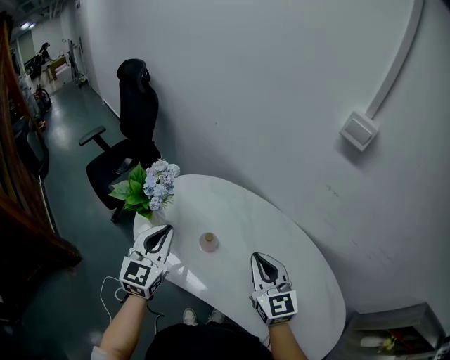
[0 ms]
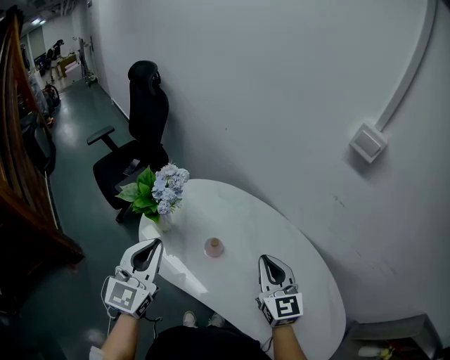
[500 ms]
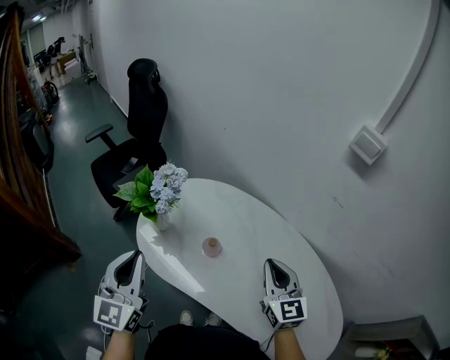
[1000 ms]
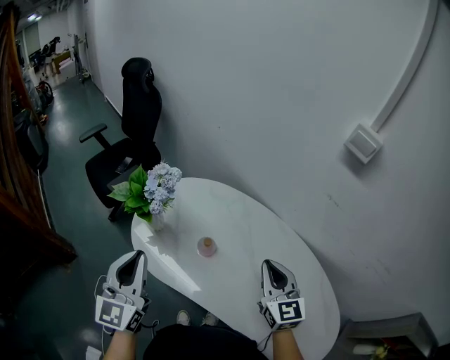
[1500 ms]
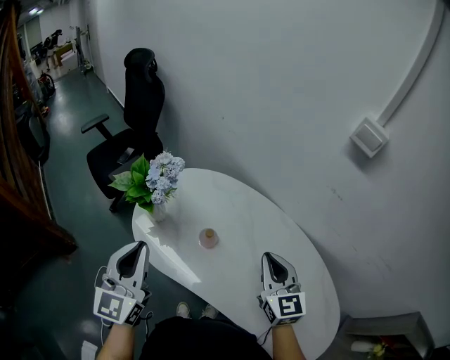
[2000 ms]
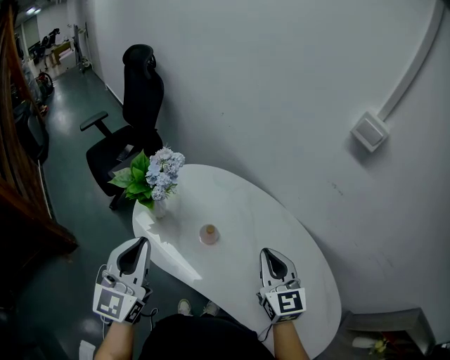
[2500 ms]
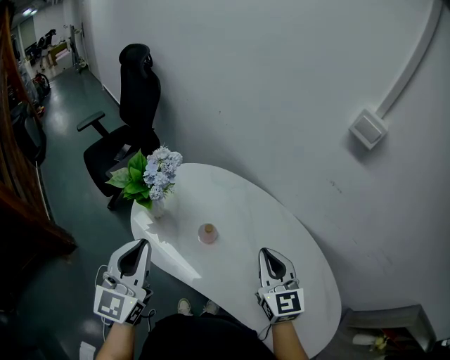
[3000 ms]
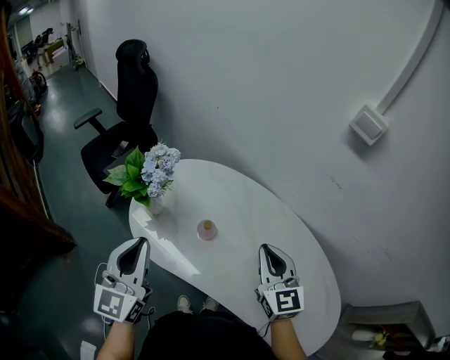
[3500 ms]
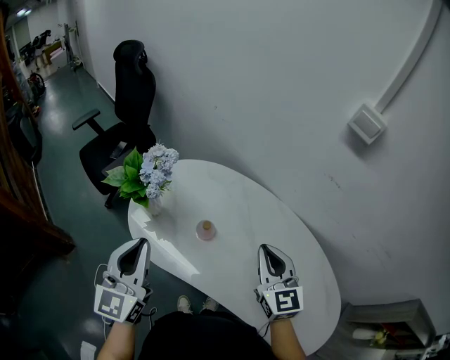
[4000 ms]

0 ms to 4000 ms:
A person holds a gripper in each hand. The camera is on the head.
0 ms to 2000 ms: The left gripper travels backward, upward and to the left by approximately 10 cm.
2000 ms to 4000 ms: The grippers stay close to where they were, moving slightly.

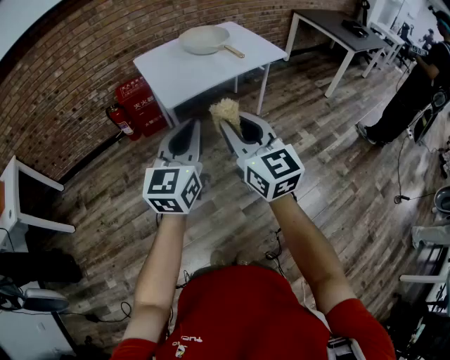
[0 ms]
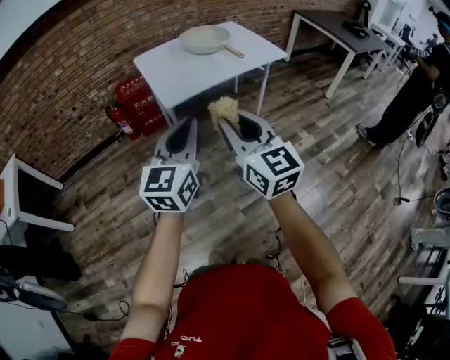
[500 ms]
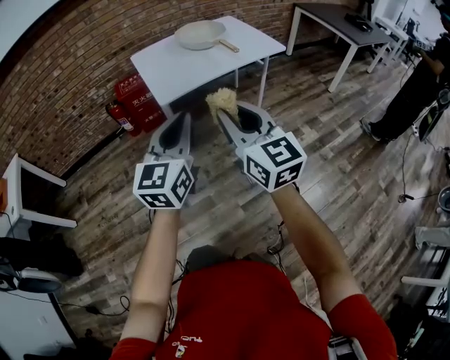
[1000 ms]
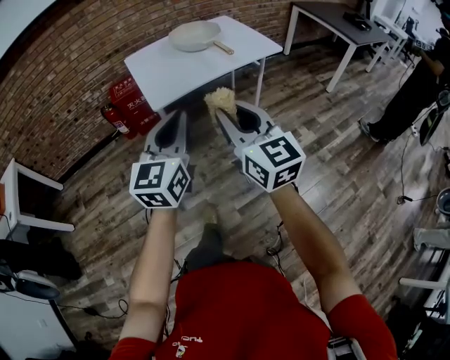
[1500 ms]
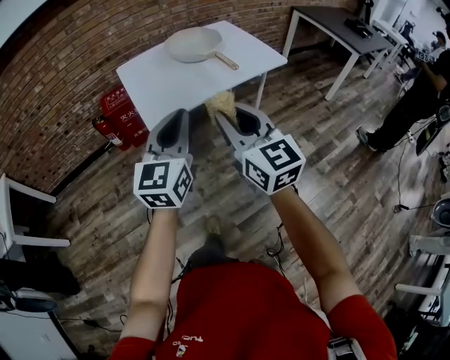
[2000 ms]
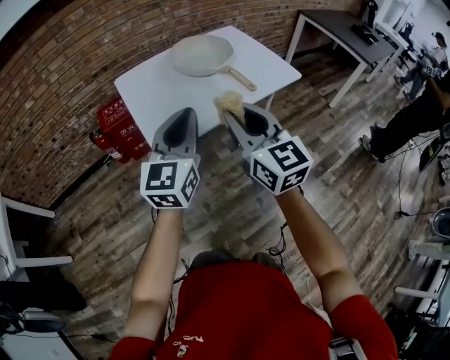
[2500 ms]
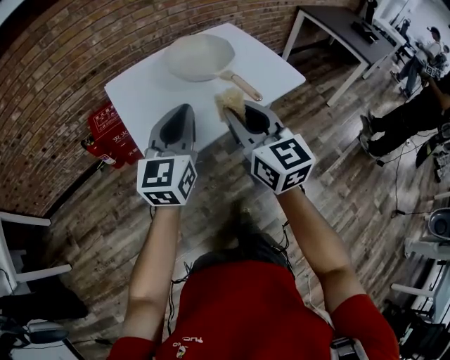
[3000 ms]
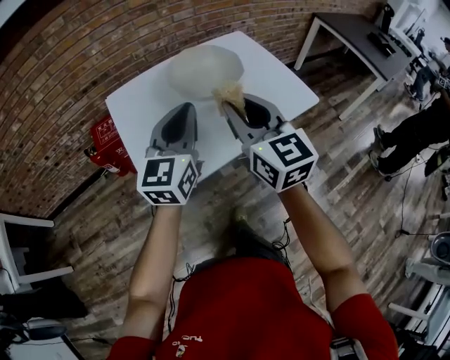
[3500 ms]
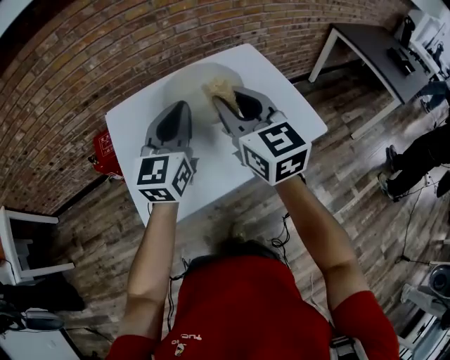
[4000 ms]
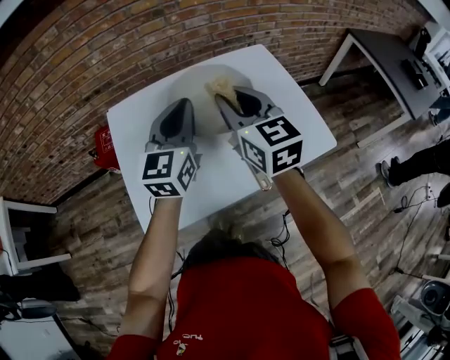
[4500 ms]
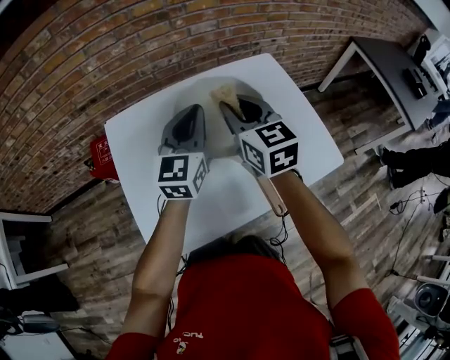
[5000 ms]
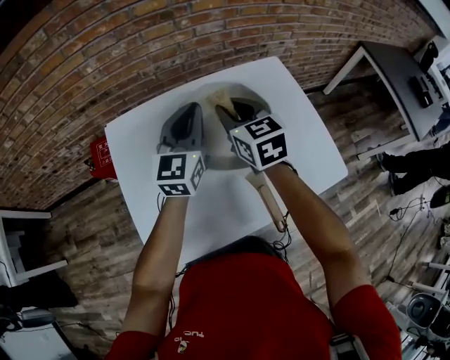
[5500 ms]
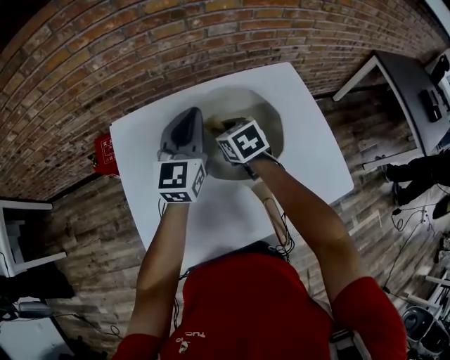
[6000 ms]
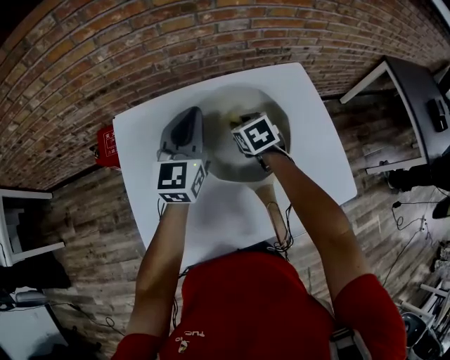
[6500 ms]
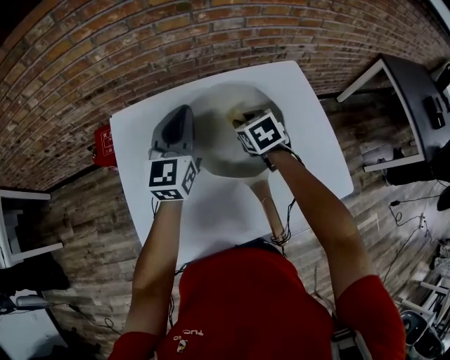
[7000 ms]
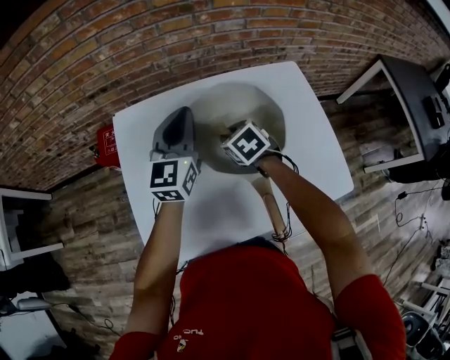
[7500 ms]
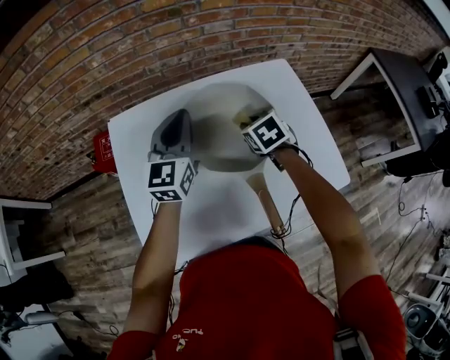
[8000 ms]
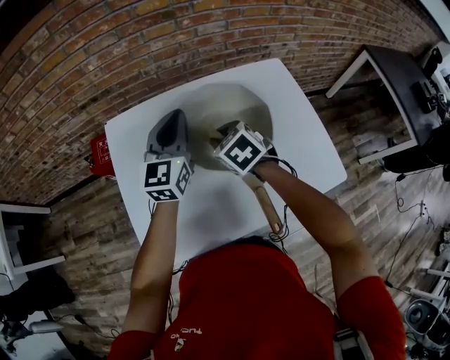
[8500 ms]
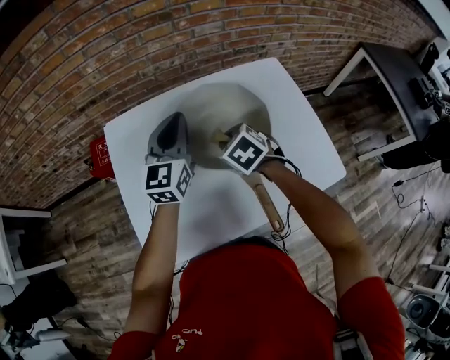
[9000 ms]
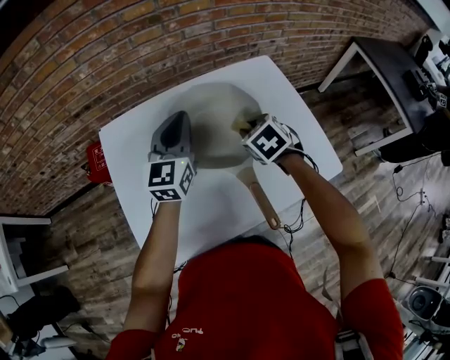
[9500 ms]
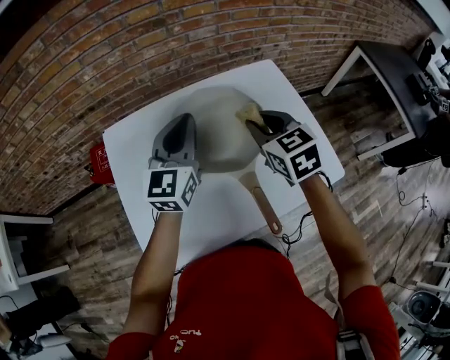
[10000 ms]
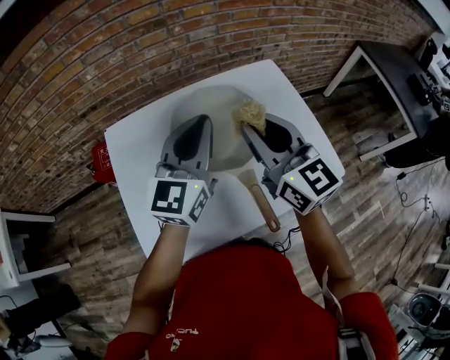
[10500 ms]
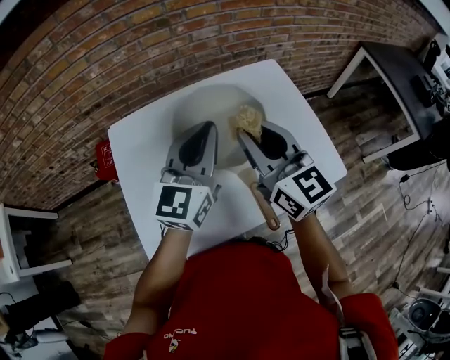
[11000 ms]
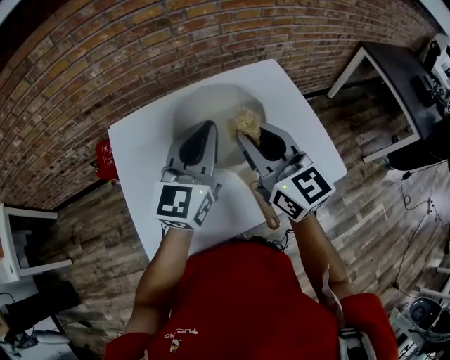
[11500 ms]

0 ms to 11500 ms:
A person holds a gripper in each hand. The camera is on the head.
0 ms to 2000 ms: Both grippers travel together forward, about 15 cm.
2000 ms to 4000 ms: The pair of grippers is taken forward, roughly 50 cm.
4000 ms to 6000 ms: The right gripper is displaced forward and downward by some 35 cm, and tilts its fingers approximately 40 degrees downward, while the left gripper shifts about 20 cm forward.
7500 ms to 9500 ms: The right gripper moves left and right over roughly 10 cm, changing direction 2 times.
9500 ms to 11500 ms: The left gripper is displaced backward, upward and to the right by about 10 cm, while the right gripper goes roughly 20 cm upward and backward, and tilts its fingers about 60 degrees upward.

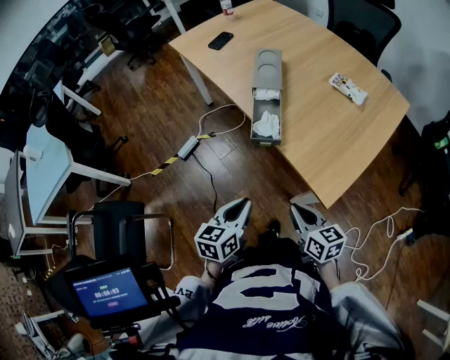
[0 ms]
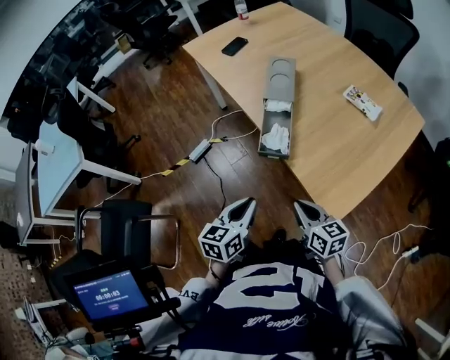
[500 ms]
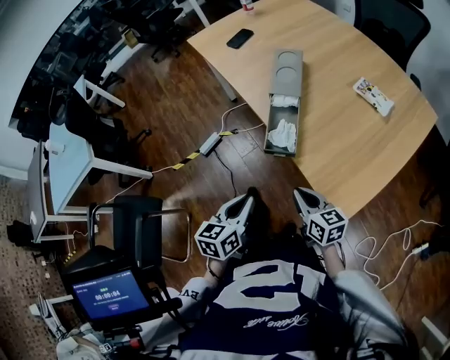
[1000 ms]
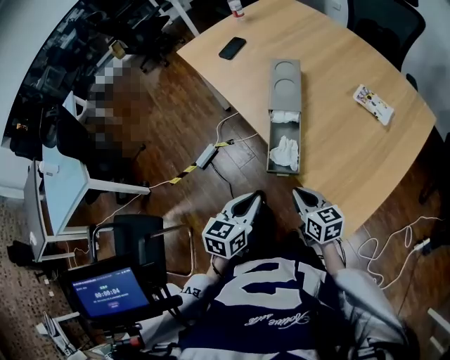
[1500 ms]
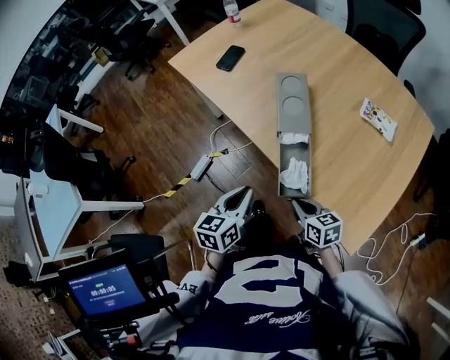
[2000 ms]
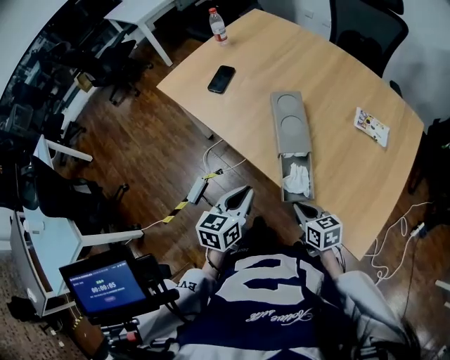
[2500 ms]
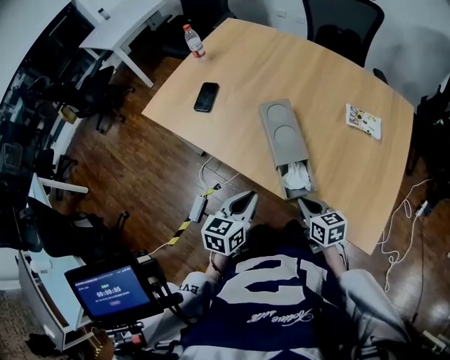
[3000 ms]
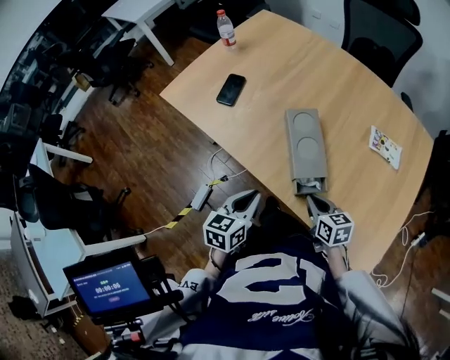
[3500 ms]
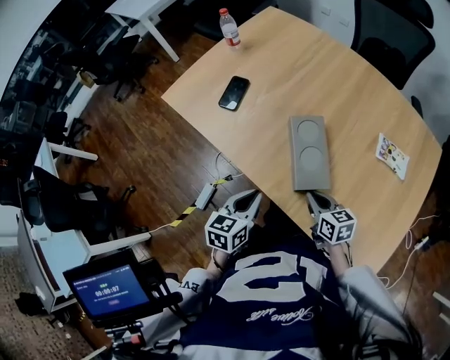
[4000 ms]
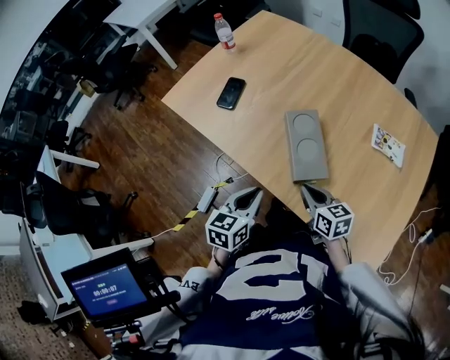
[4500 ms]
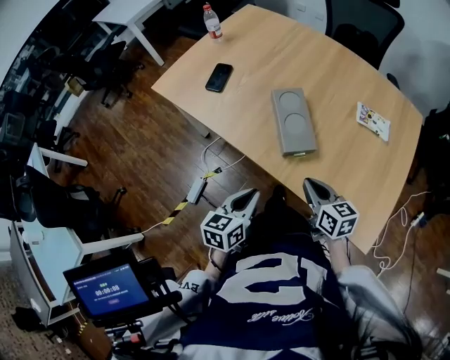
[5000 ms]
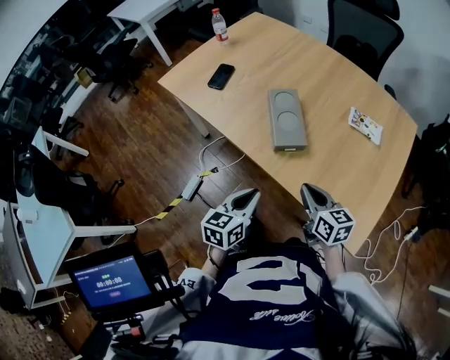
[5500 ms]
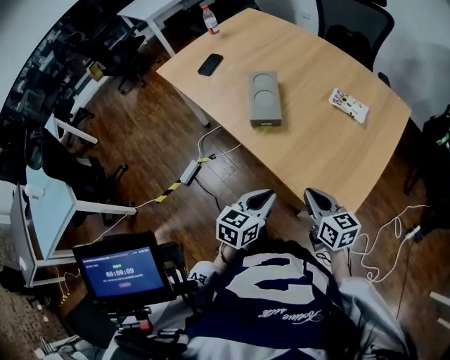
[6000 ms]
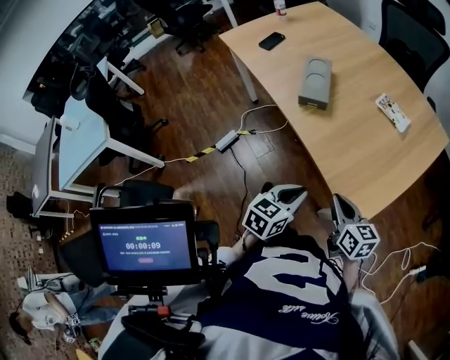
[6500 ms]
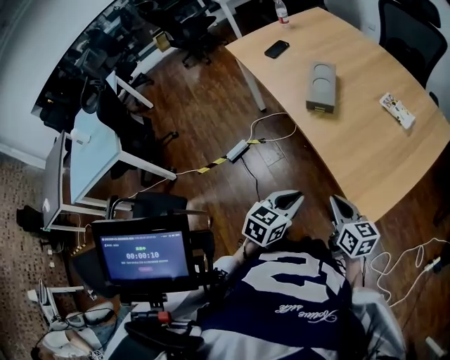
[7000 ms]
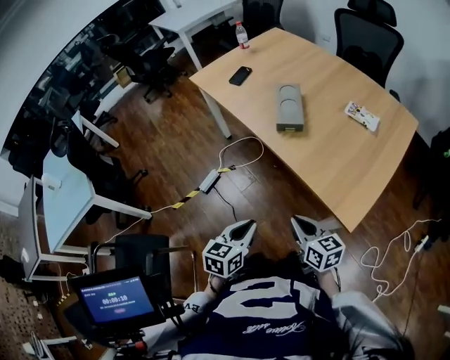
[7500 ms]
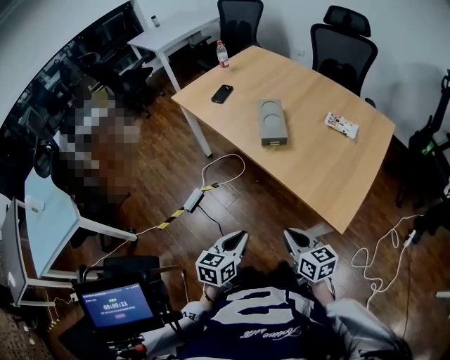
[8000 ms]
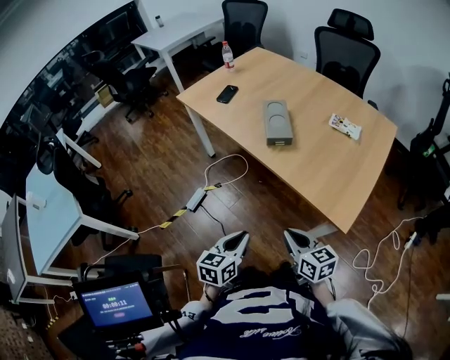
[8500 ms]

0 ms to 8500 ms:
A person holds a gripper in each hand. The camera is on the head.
0 ms to 2000 ms: Both grippers travel together forward, roughly 25 cm.
2000 ms to 4000 ms: Both grippers travel together forward, roughly 20 cm.
4000 ms to 6500 ms: Both grippers move backward and to the right, some 40 cm.
6500 ms to 8500 ms: The grippers both shift to the left by approximately 15 cm.

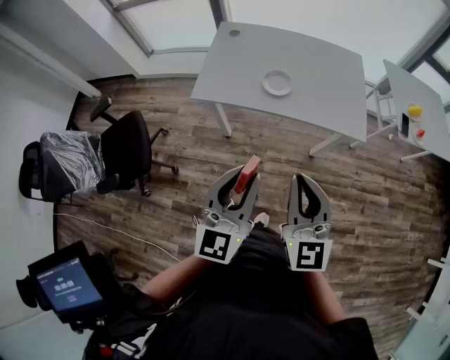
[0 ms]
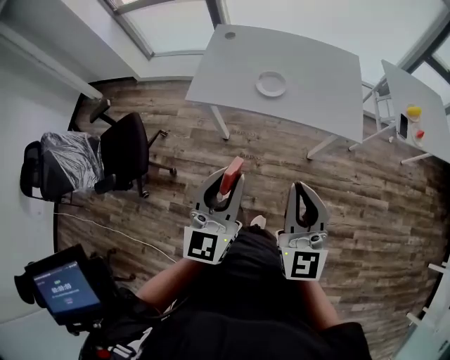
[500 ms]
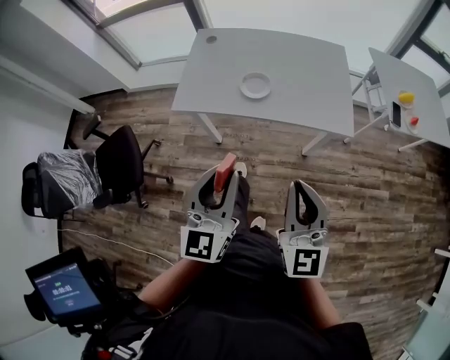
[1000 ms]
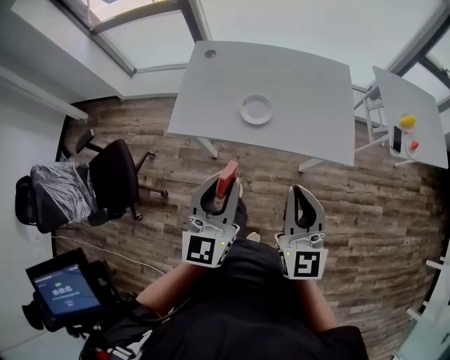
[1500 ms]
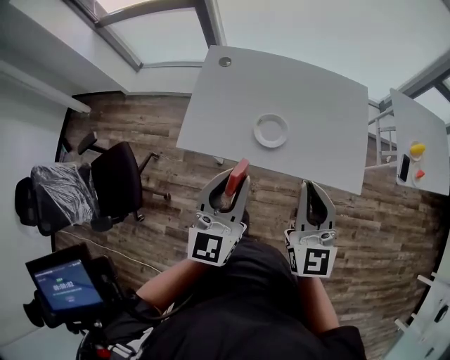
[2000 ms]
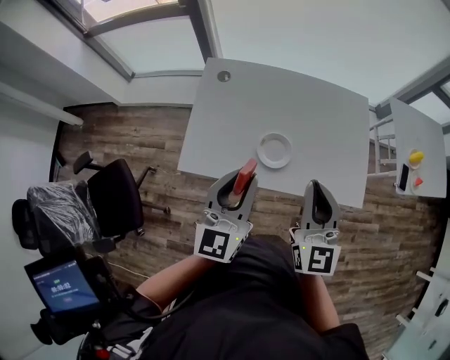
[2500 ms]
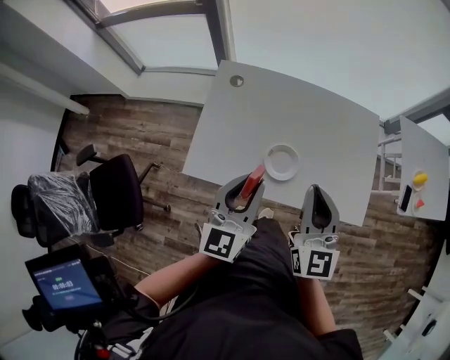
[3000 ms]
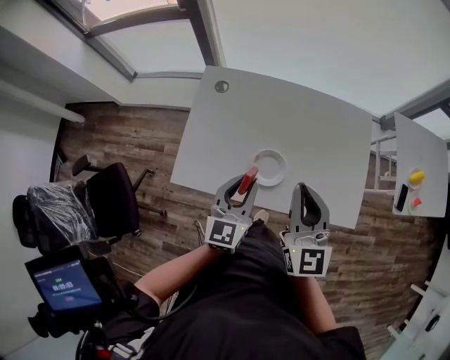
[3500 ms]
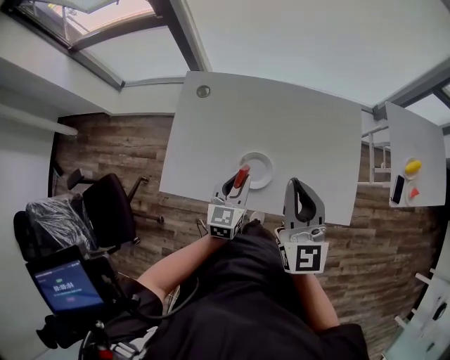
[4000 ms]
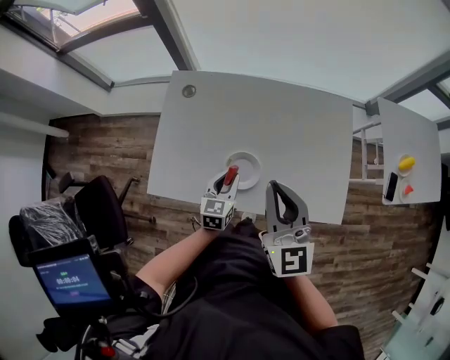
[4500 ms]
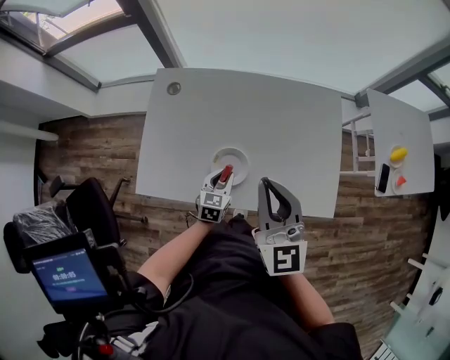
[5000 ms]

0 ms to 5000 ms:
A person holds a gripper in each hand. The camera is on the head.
0 ms to 2500 ms: The two grippers go some 35 cm forward.
2500 ms to 5000 ms: The right gripper is displaced forward by roughly 10 cm; the left gripper goes roughly 30 cm downward, and angles its fingers downward, by about 30 degrees.
